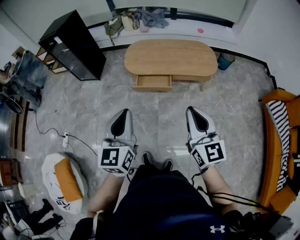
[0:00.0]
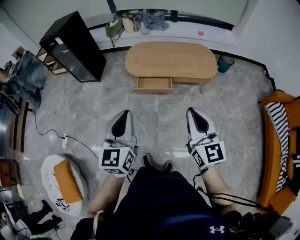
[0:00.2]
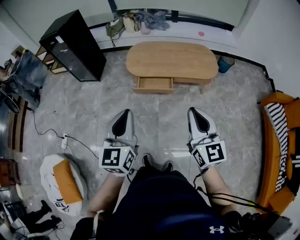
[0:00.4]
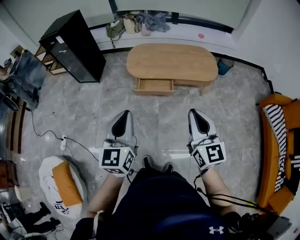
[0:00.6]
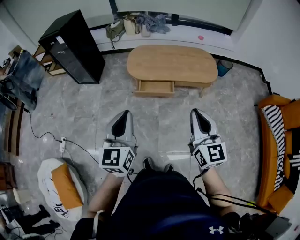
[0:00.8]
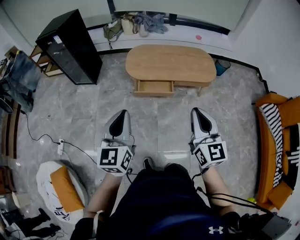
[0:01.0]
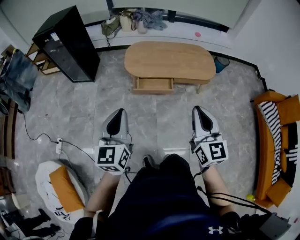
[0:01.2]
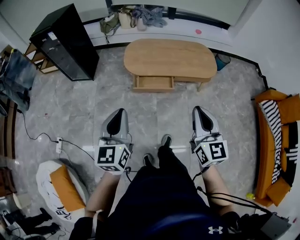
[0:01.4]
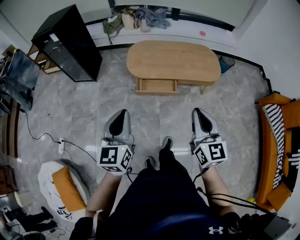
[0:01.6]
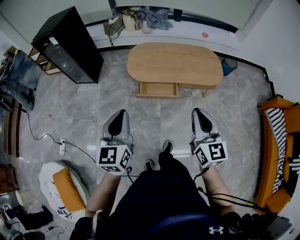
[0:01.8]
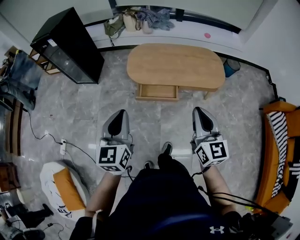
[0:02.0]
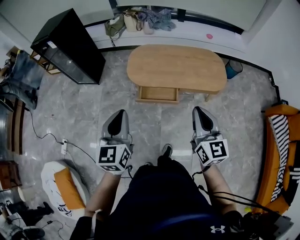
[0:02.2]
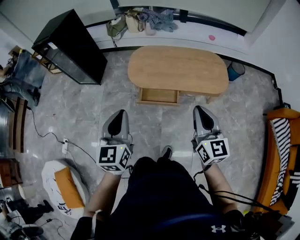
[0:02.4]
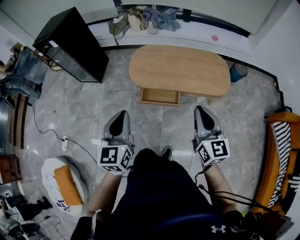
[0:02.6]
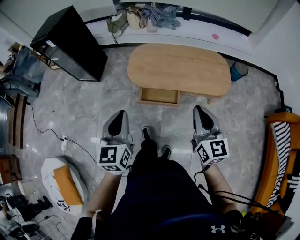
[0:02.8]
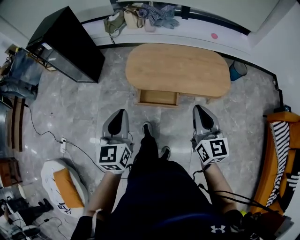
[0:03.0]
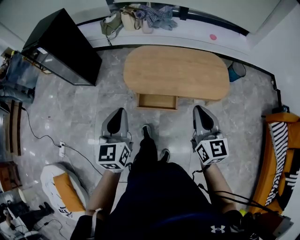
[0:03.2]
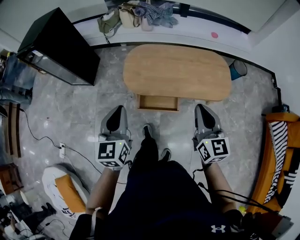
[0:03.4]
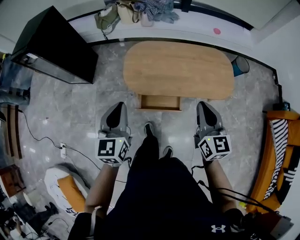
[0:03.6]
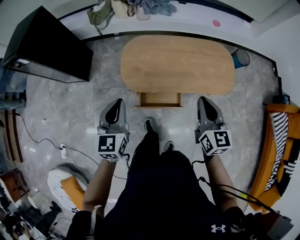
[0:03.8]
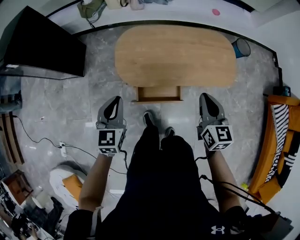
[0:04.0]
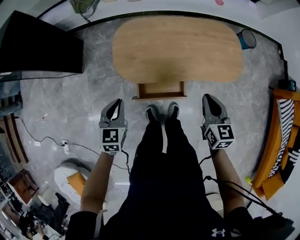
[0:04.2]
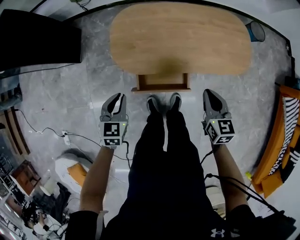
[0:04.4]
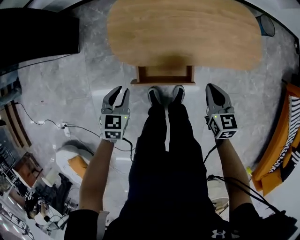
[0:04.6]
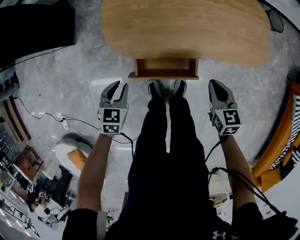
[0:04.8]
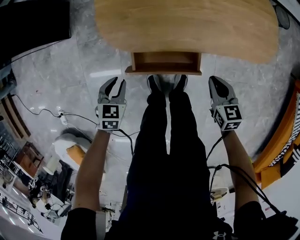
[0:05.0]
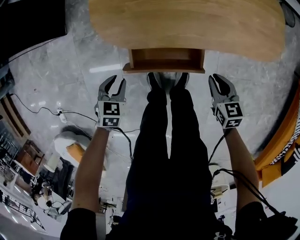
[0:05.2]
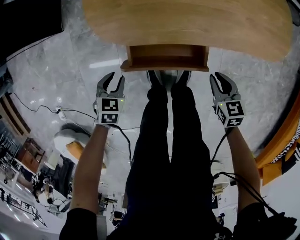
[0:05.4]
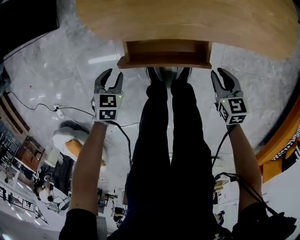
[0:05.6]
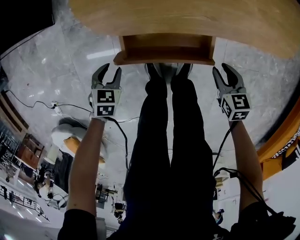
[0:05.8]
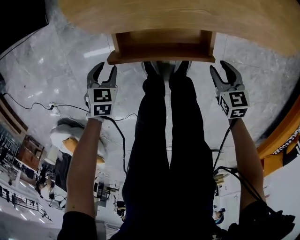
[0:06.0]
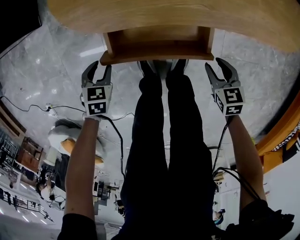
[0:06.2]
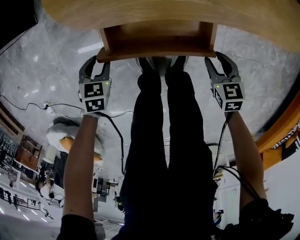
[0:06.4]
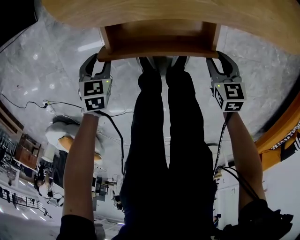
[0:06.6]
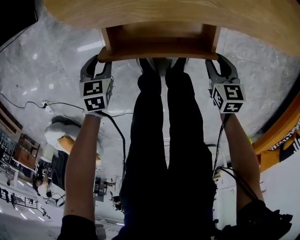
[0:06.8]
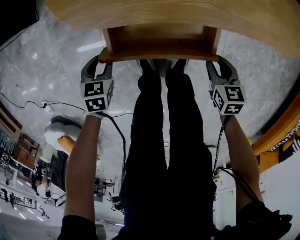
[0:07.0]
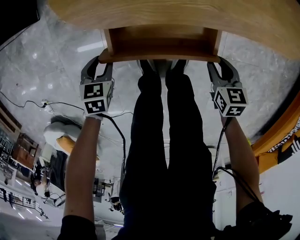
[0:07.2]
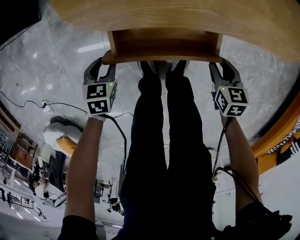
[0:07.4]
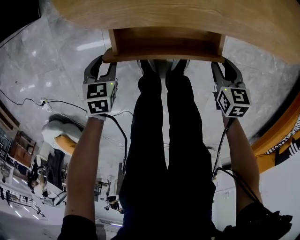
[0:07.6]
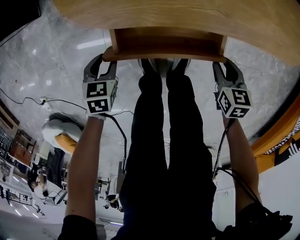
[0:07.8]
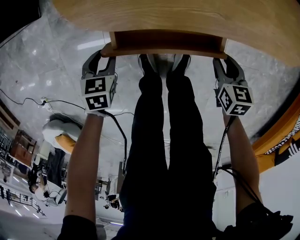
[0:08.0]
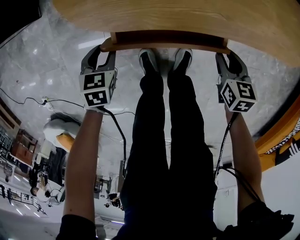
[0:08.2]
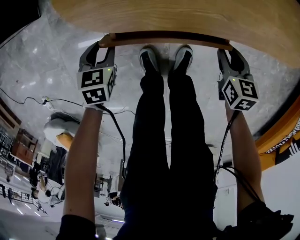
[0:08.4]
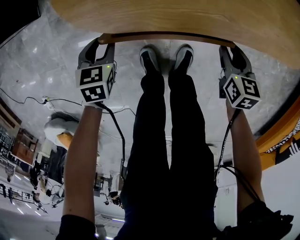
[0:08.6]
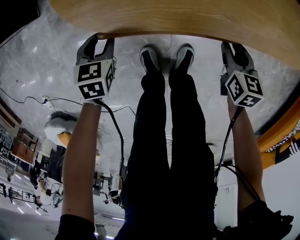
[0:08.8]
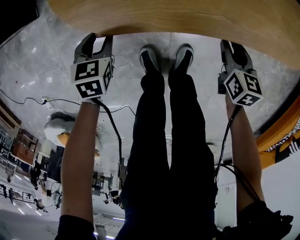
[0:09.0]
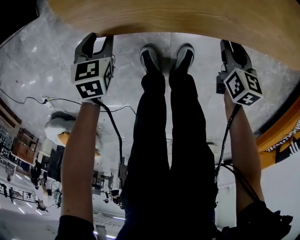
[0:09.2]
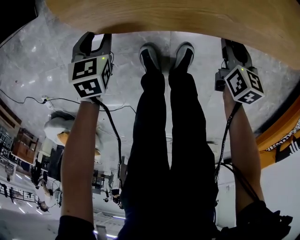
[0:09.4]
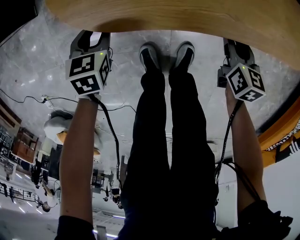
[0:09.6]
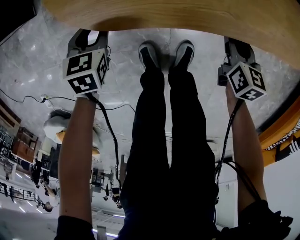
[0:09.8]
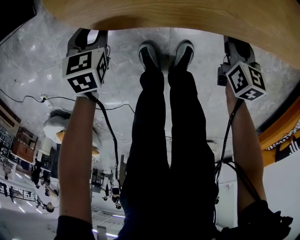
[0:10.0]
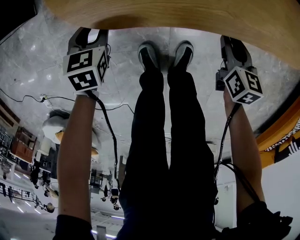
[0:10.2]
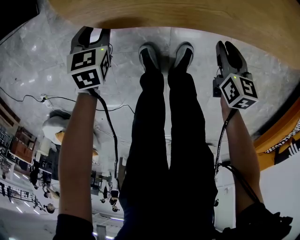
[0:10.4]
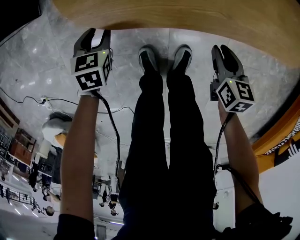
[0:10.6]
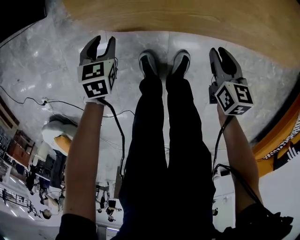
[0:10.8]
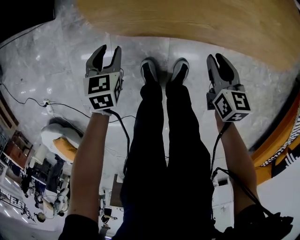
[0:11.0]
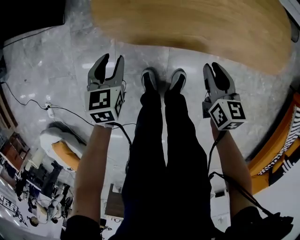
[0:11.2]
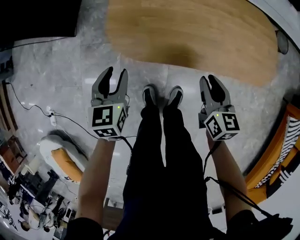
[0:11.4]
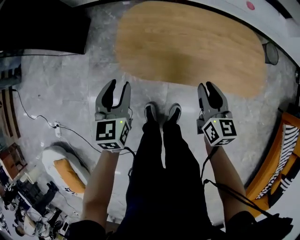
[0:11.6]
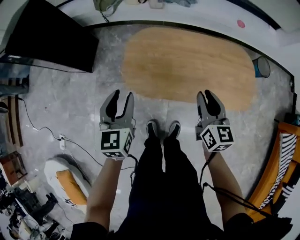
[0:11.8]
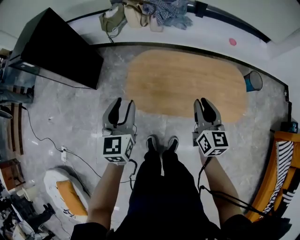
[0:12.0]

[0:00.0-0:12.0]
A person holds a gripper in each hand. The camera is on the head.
0:00.0 to 0:01.6: Both grippers move to the left and forward, some 15 cm.
0:01.6 to 0:03.0: The grippers both shift forward by roughly 20 cm.
0:03.0 to 0:04.4: The grippers both shift downward and forward by roughly 35 cm. The left gripper rotates roughly 30 degrees; the right gripper turns by approximately 30 degrees.
0:04.4 to 0:06.0: Both grippers travel together downward, about 35 cm. The right gripper turns by about 30 degrees, and opens up; the left gripper rotates some 30 degrees, and opens its fingers.
0:06.0 to 0:07.6: The grippers make only small movements.
0:07.6 to 0:09.0: Both grippers travel together forward, approximately 10 cm.
0:09.0 to 0:10.4: The grippers stay close to where they were, moving slightly.
0:10.4 to 0:12.0: Both grippers travel together upward, about 50 cm. The right gripper tips its fingers upward by roughly 40 degrees. The left gripper angles its fingers upward, by approximately 40 degrees.

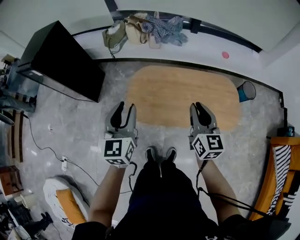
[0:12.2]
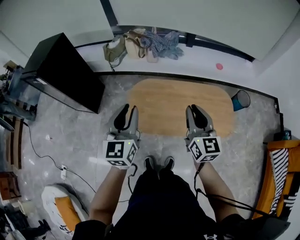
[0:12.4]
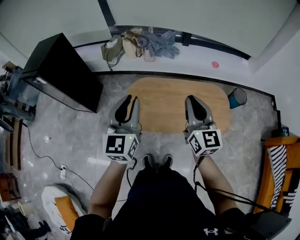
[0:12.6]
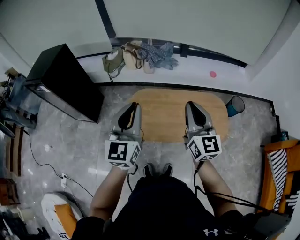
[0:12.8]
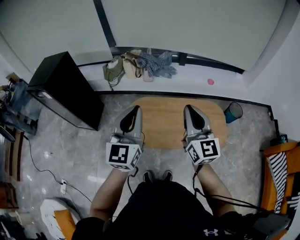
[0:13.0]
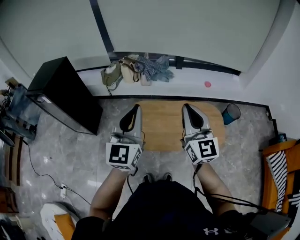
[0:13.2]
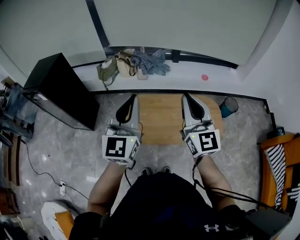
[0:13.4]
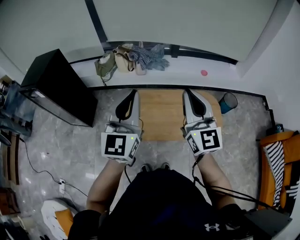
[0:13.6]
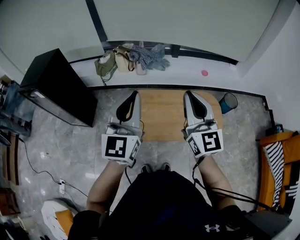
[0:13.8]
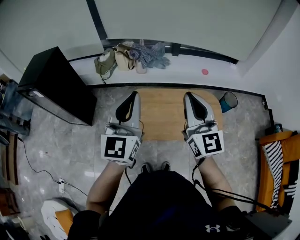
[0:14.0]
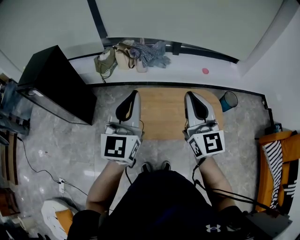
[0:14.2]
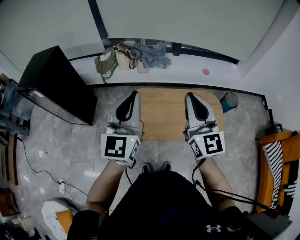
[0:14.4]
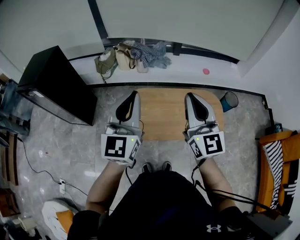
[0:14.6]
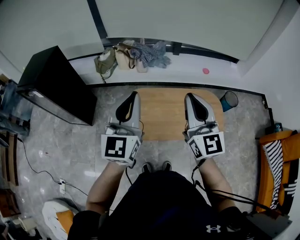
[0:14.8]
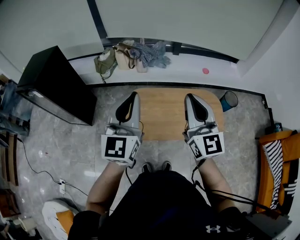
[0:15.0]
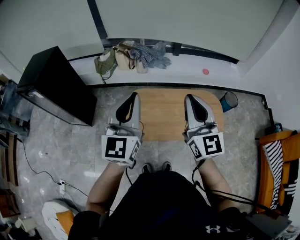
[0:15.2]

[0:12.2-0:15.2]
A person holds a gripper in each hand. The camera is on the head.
0:12.2 to 0:13.8: Both grippers travel together upward, roughly 20 cm. The right gripper turns by approximately 30 degrees. The left gripper rotates about 30 degrees, and closes.
0:13.8 to 0:15.2: The grippers make only small movements.

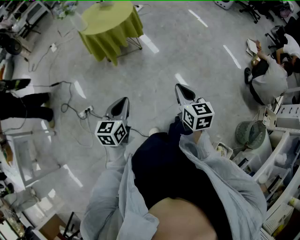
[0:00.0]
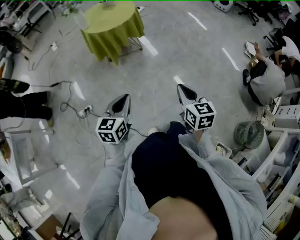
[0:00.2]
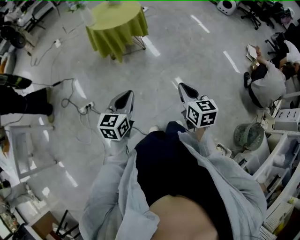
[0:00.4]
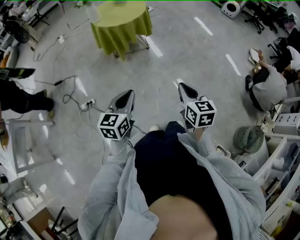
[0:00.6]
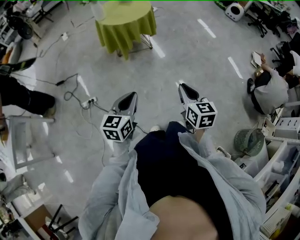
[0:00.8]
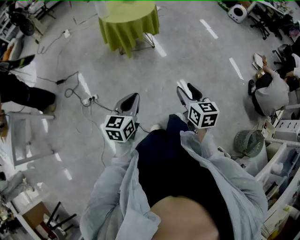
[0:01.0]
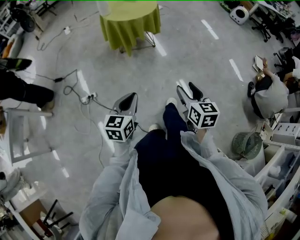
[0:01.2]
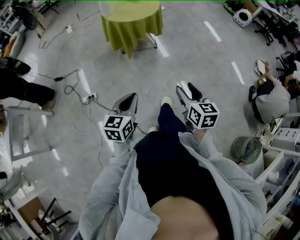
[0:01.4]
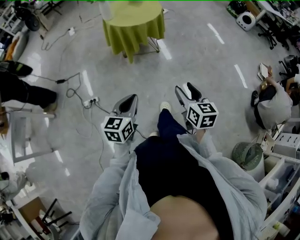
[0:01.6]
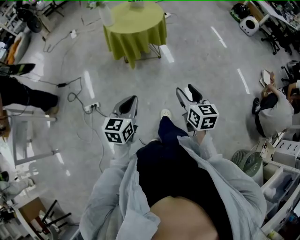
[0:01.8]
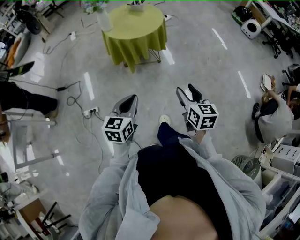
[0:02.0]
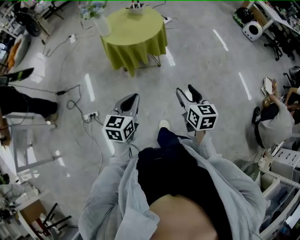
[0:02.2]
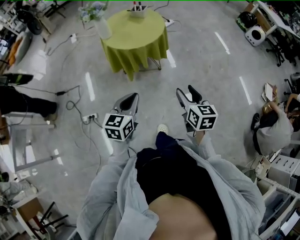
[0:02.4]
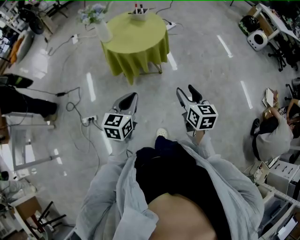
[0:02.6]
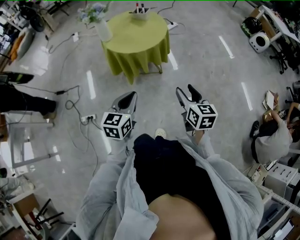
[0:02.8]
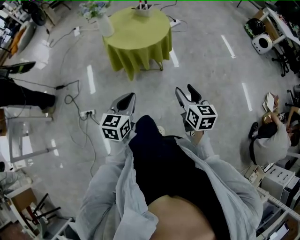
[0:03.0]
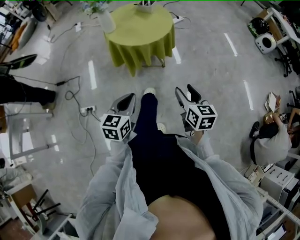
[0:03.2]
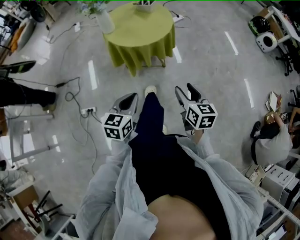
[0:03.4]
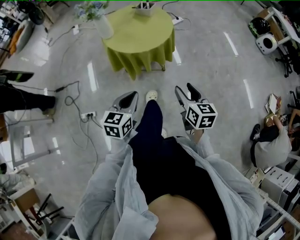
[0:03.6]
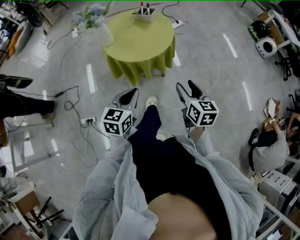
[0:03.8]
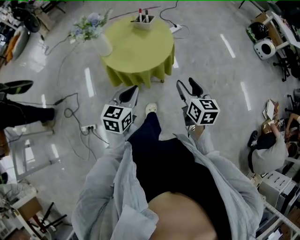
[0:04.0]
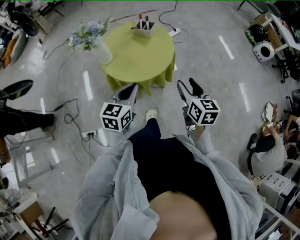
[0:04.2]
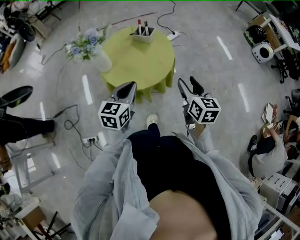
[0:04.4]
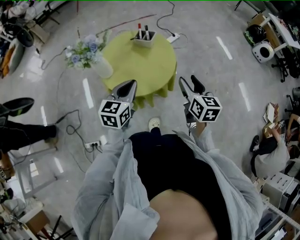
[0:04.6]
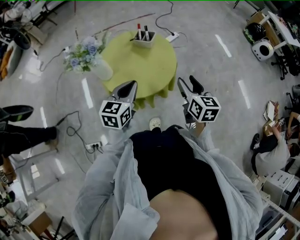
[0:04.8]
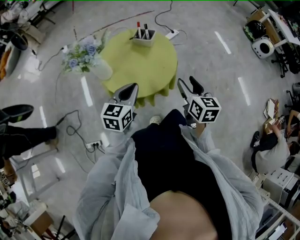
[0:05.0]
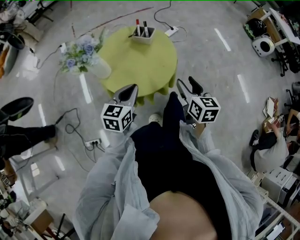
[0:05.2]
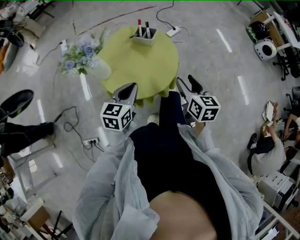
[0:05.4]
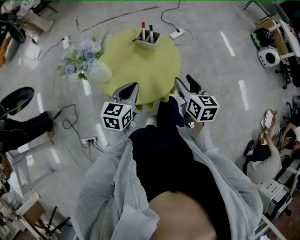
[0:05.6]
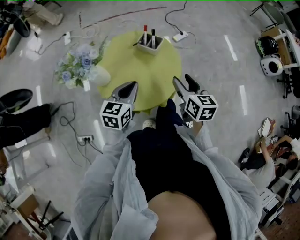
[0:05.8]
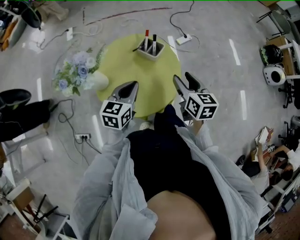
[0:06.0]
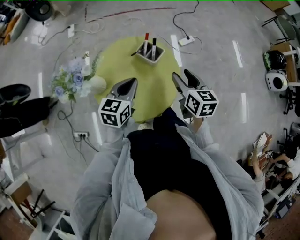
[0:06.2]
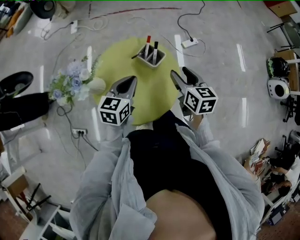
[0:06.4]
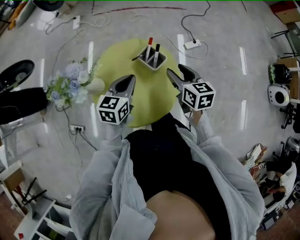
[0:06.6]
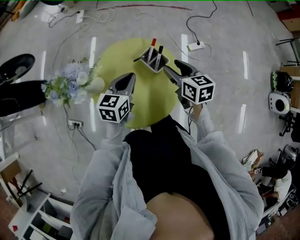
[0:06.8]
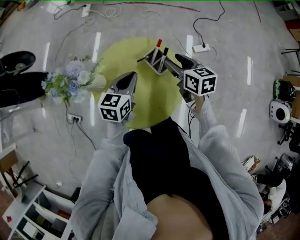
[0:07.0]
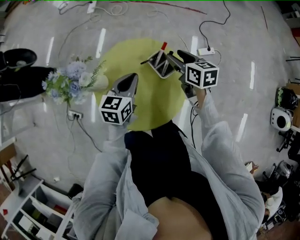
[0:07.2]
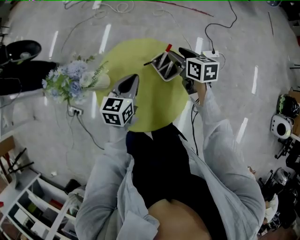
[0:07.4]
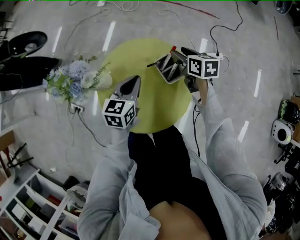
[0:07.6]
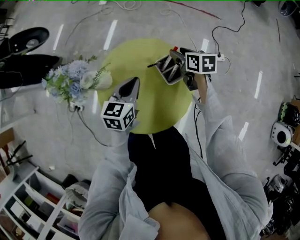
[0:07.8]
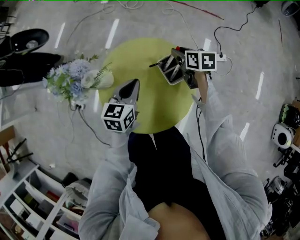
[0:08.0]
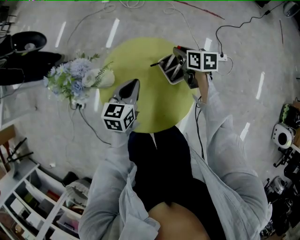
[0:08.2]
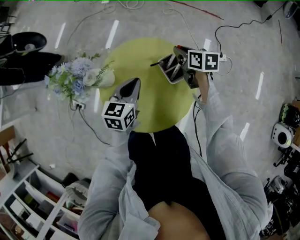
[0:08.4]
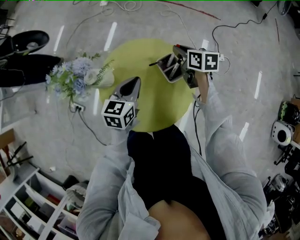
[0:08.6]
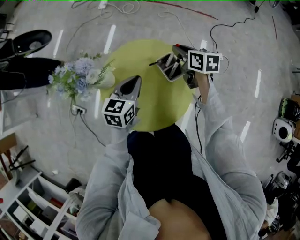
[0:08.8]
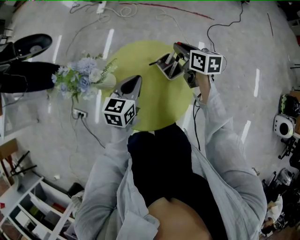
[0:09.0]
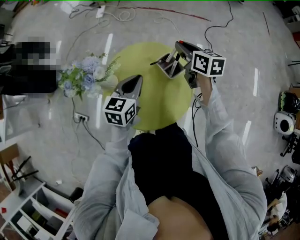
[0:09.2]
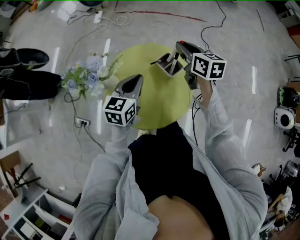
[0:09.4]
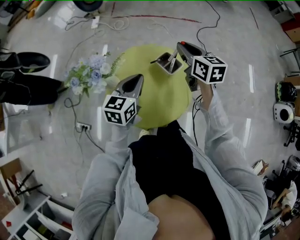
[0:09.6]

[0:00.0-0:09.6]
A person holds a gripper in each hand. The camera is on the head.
0:00.0 to 0:01.6: The right gripper goes some 5 cm to the left, and opens its fingers.
0:01.6 to 0:03.2: Both grippers travel together forward, approximately 25 cm.
0:03.2 to 0:04.8: The grippers both shift forward by approximately 35 cm.
0:04.8 to 0:06.4: Both grippers travel together forward, some 25 cm. The right gripper rotates roughly 20 degrees.
0:06.4 to 0:08.0: The left gripper moves about 10 cm, and swivels about 20 degrees, while the right gripper shifts by approximately 25 cm, and turns by roughly 30 degrees.
0:08.0 to 0:09.6: The right gripper moves upward and backward, roughly 20 cm, turns by some 30 degrees, and closes up. Meanwhile the left gripper travels upward by about 10 cm.
